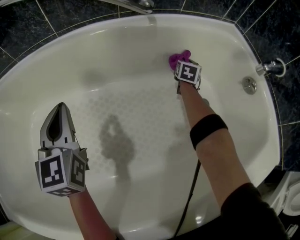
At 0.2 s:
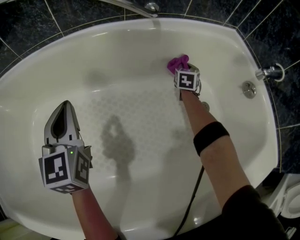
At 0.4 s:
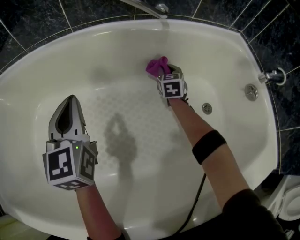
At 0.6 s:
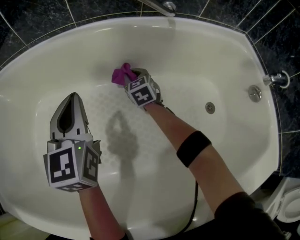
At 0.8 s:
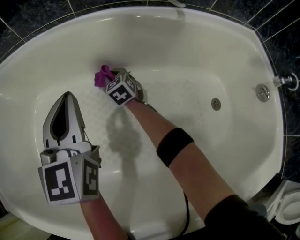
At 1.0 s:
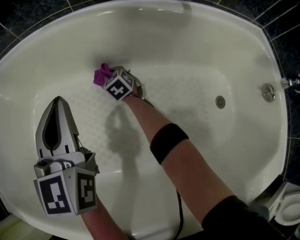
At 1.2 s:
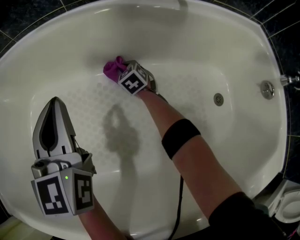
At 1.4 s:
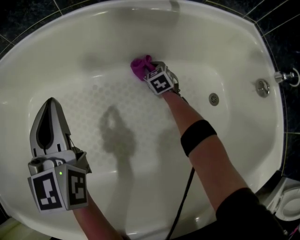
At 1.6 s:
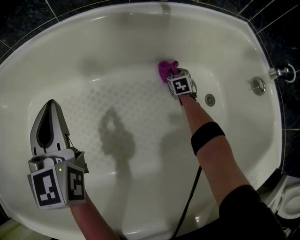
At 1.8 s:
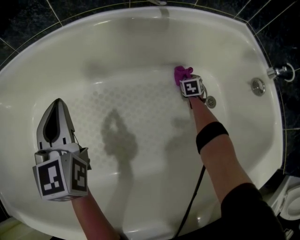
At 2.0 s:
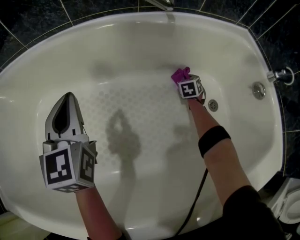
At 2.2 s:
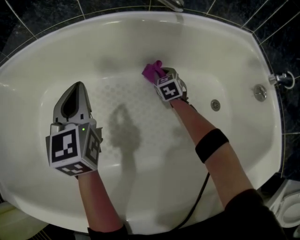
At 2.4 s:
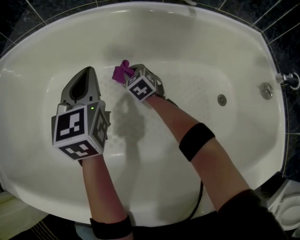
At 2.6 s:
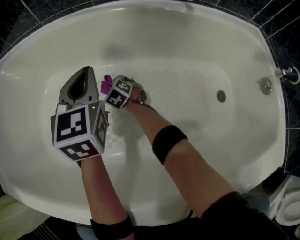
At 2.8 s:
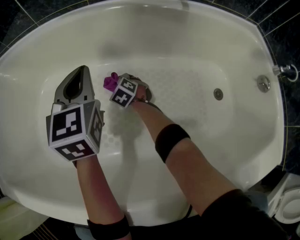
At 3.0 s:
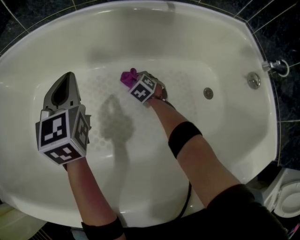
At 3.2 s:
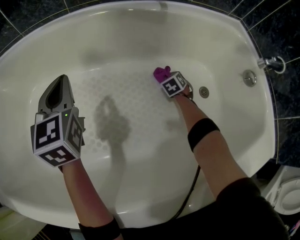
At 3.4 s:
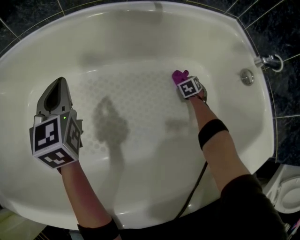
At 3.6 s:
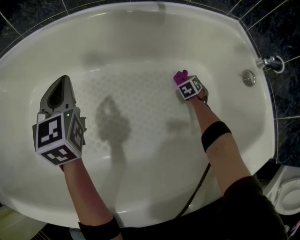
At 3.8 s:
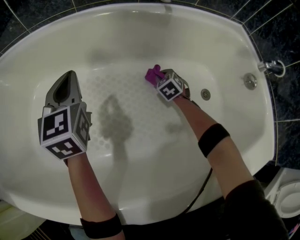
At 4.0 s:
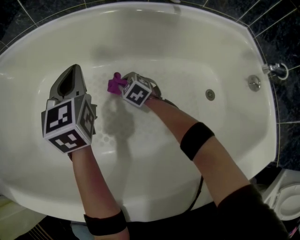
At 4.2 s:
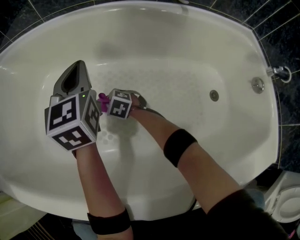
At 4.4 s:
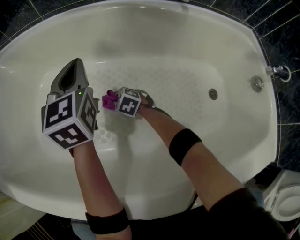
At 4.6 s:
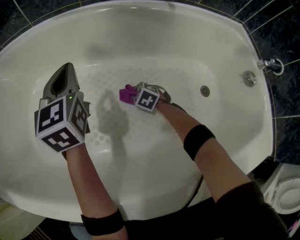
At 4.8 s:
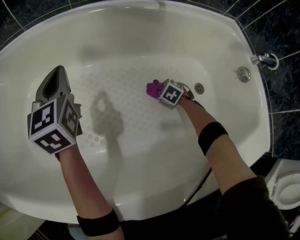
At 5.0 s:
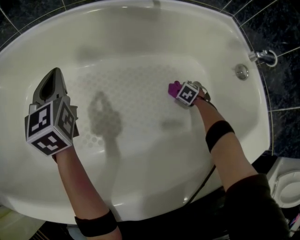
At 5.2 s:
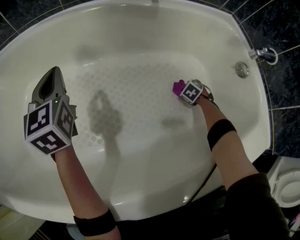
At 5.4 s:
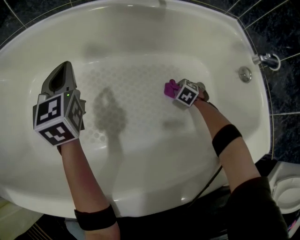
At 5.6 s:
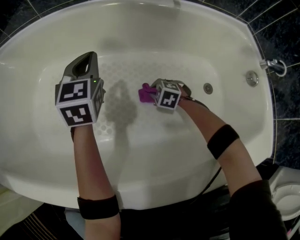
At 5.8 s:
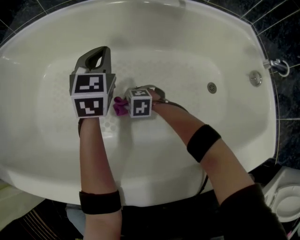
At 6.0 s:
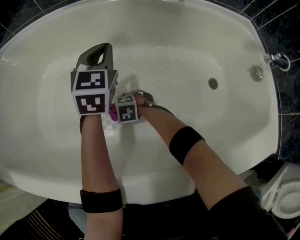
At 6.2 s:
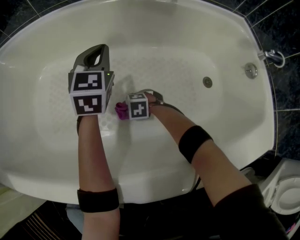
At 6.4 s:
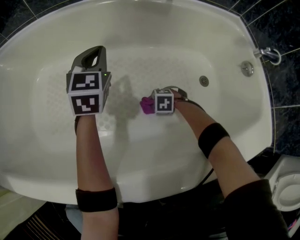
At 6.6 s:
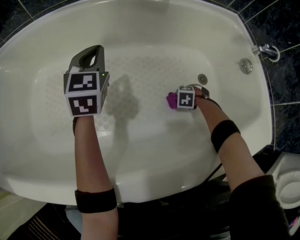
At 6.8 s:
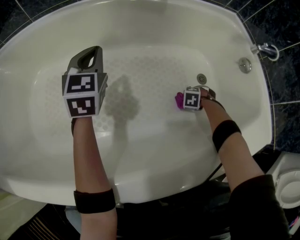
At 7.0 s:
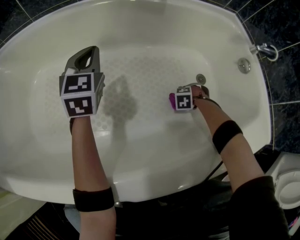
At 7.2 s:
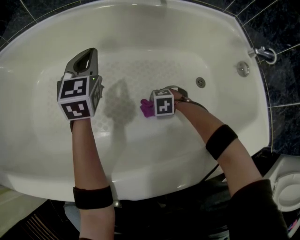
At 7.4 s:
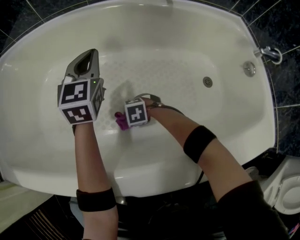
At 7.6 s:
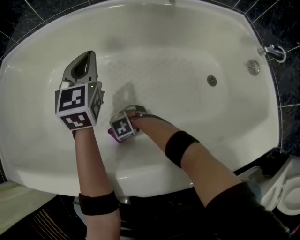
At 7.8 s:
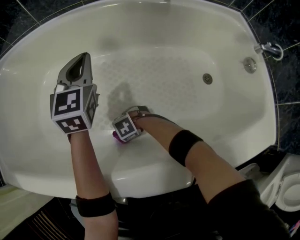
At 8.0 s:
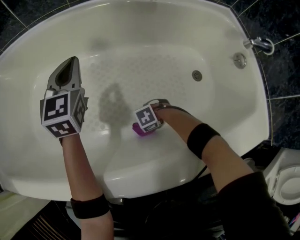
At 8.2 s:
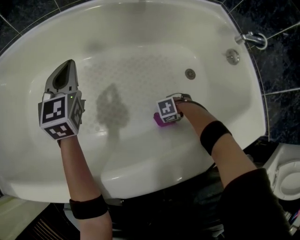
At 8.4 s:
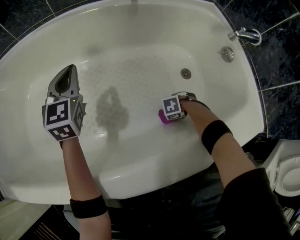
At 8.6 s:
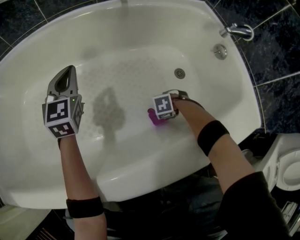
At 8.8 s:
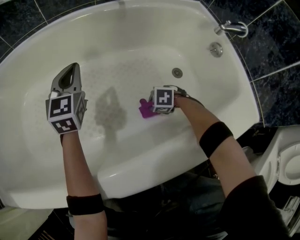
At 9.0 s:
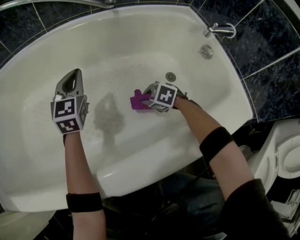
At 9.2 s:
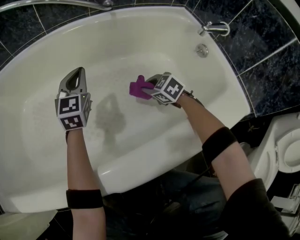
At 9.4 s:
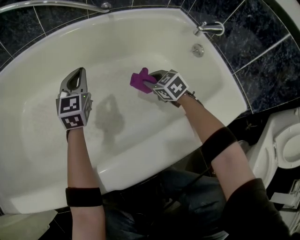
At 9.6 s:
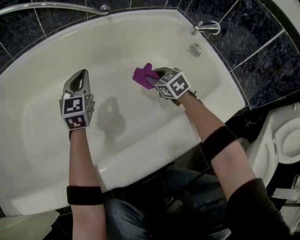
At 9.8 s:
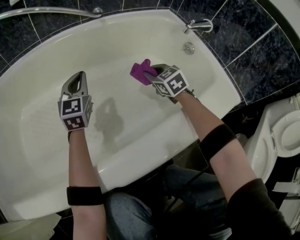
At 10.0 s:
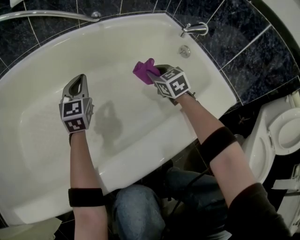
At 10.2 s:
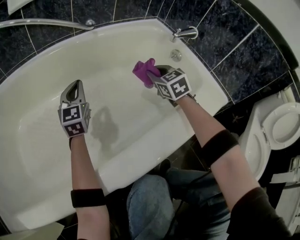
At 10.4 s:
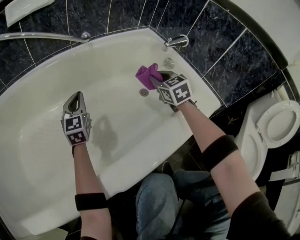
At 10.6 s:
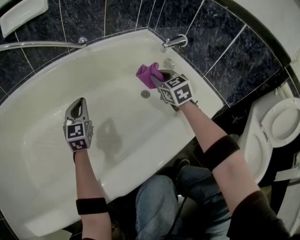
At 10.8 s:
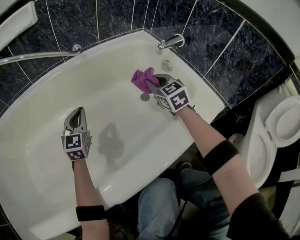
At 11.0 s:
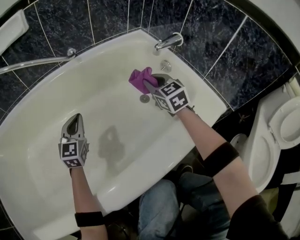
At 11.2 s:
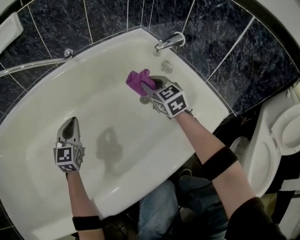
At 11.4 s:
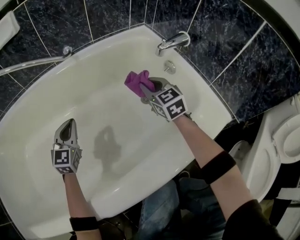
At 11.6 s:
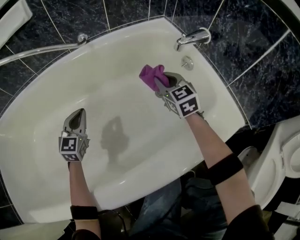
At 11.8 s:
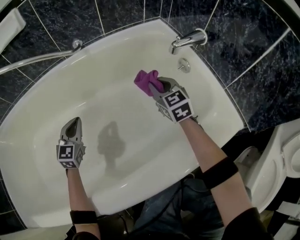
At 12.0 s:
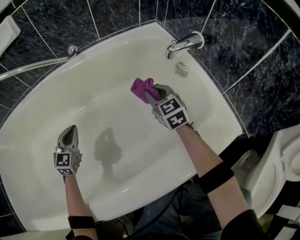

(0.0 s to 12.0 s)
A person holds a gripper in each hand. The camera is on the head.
0.0 s - 1.6 s: The right gripper is displaced downward by approximately 10 cm, and changes its angle by roughly 30 degrees.
1.6 s - 3.0 s: The right gripper moves about 10 cm upward and comes back, and turns by roughly 30 degrees.
3.0 s - 4.4 s: The right gripper reaches some 5 cm upward, then returns, and turns by approximately 30 degrees.
4.4 s - 6.0 s: The left gripper changes place by about 10 cm, and rotates about 20 degrees, while the right gripper rotates about 30 degrees.
6.0 s - 7.6 s: The left gripper ends up roughly 5 cm from where it was.
7.6 s - 9.0 s: The right gripper ends up some 35 cm from where it was, and rotates some 50 degrees. The left gripper ends up some 10 cm from where it was.
9.0 s - 10.4 s: The left gripper ends up roughly 5 cm from where it was, while the right gripper is displaced upward by some 25 cm, and angles its fingers upward, by roughly 30 degrees.
10.4 s - 12.0 s: The left gripper moves downward, about 5 cm, while the right gripper moves forward and downward, roughly 10 cm.

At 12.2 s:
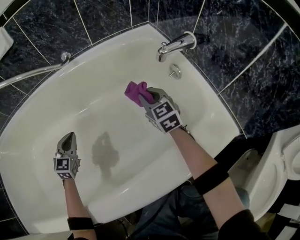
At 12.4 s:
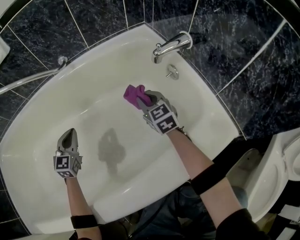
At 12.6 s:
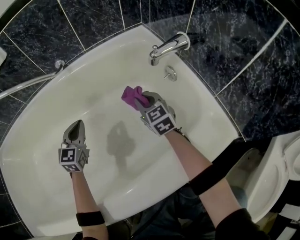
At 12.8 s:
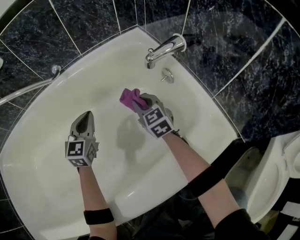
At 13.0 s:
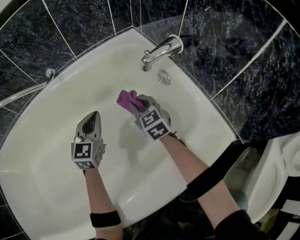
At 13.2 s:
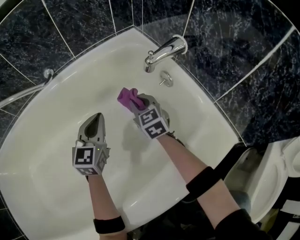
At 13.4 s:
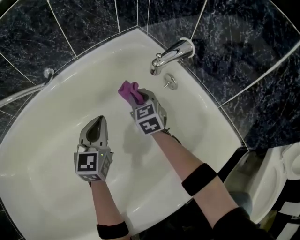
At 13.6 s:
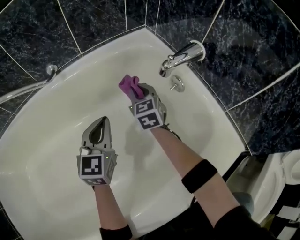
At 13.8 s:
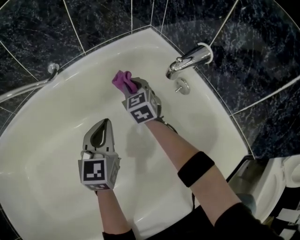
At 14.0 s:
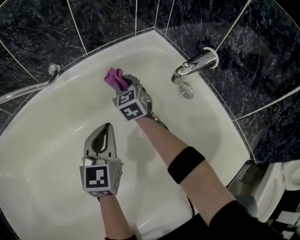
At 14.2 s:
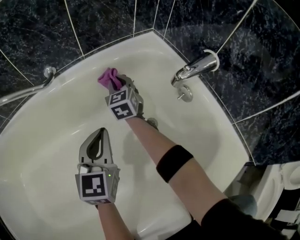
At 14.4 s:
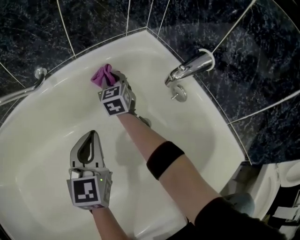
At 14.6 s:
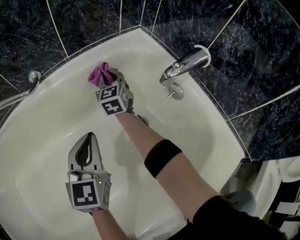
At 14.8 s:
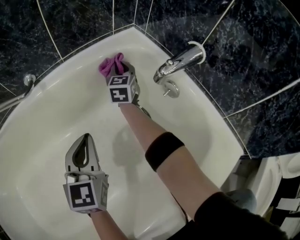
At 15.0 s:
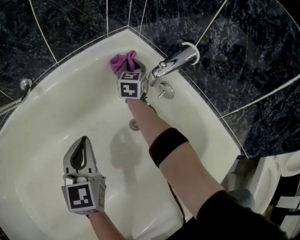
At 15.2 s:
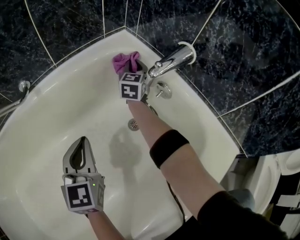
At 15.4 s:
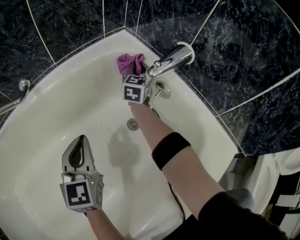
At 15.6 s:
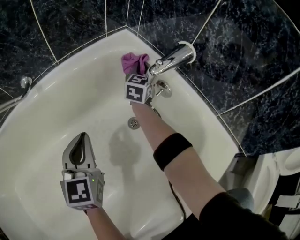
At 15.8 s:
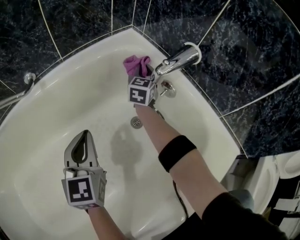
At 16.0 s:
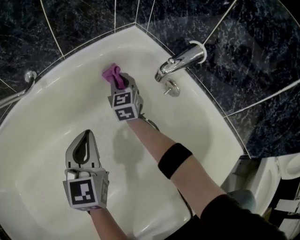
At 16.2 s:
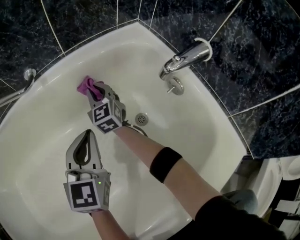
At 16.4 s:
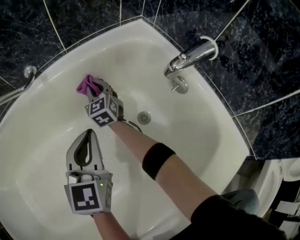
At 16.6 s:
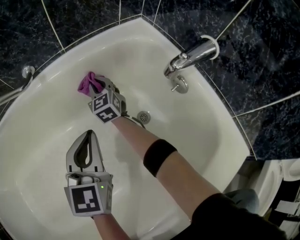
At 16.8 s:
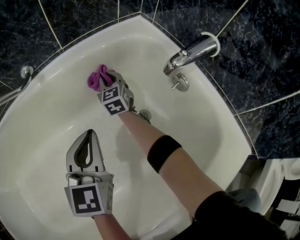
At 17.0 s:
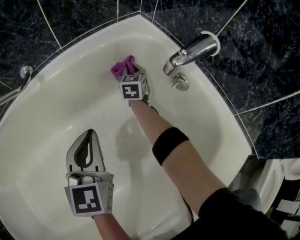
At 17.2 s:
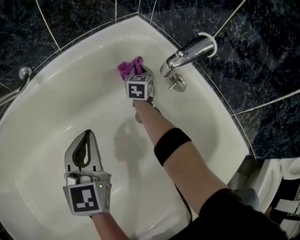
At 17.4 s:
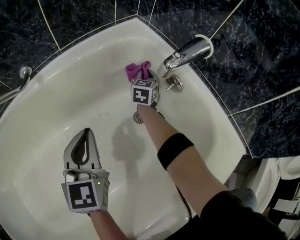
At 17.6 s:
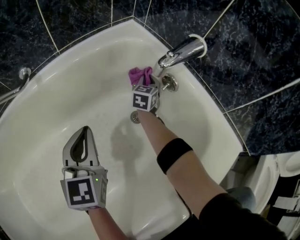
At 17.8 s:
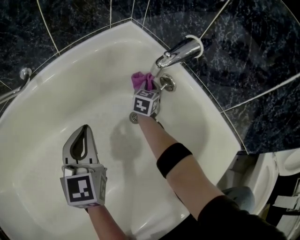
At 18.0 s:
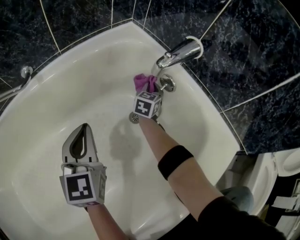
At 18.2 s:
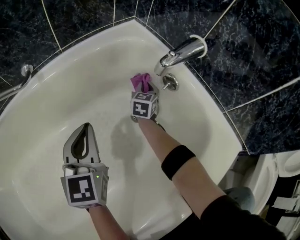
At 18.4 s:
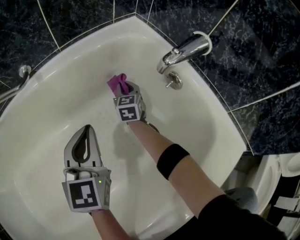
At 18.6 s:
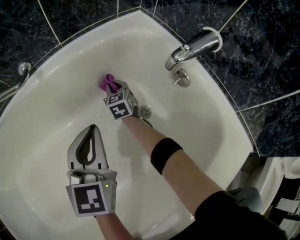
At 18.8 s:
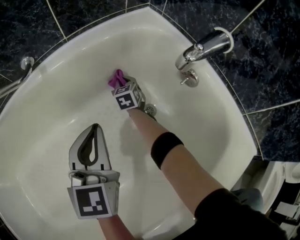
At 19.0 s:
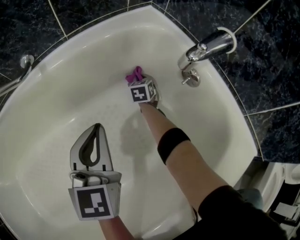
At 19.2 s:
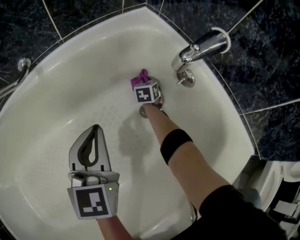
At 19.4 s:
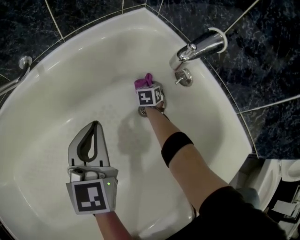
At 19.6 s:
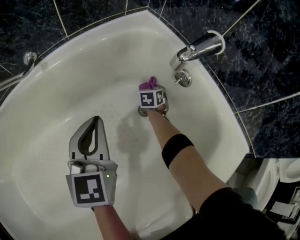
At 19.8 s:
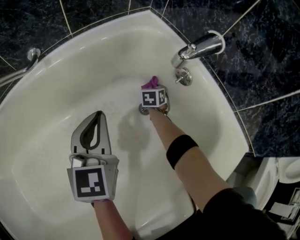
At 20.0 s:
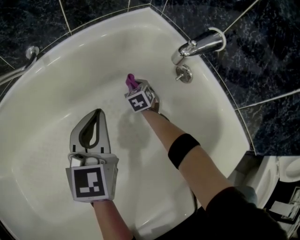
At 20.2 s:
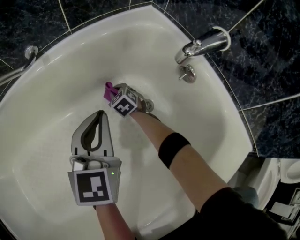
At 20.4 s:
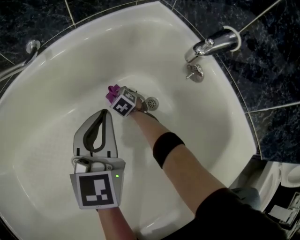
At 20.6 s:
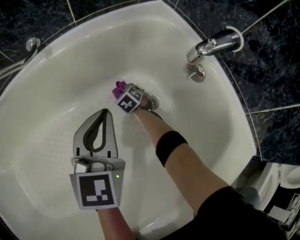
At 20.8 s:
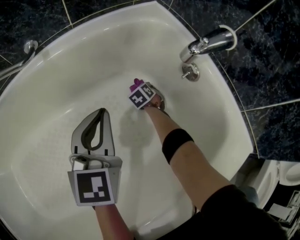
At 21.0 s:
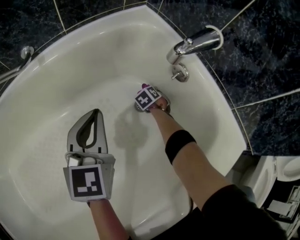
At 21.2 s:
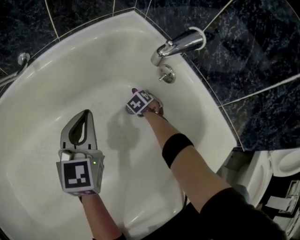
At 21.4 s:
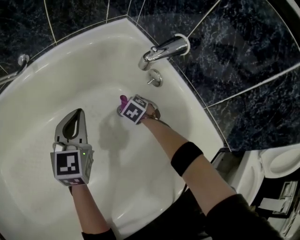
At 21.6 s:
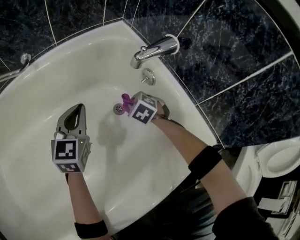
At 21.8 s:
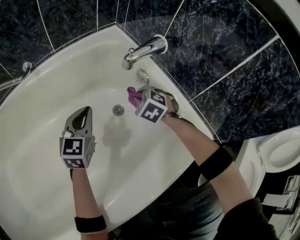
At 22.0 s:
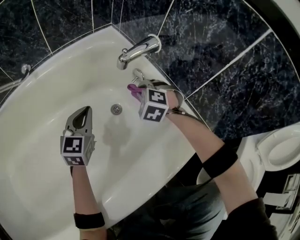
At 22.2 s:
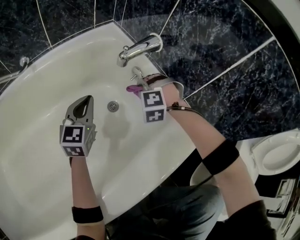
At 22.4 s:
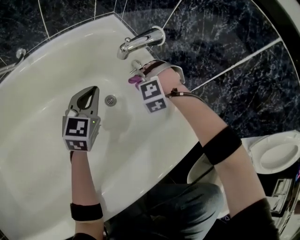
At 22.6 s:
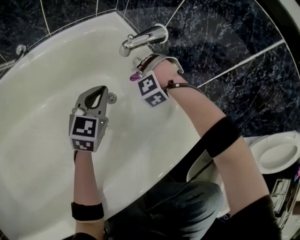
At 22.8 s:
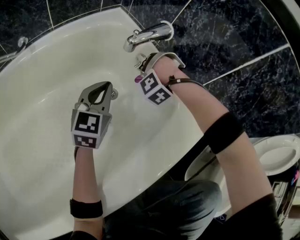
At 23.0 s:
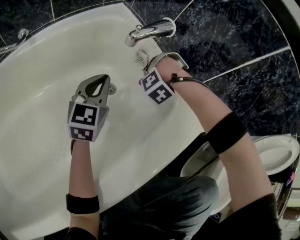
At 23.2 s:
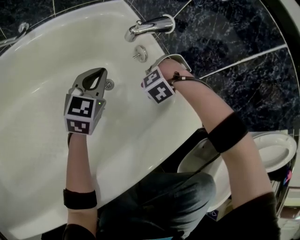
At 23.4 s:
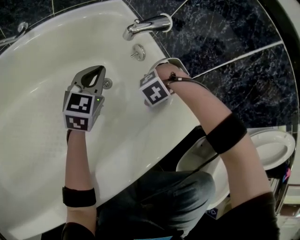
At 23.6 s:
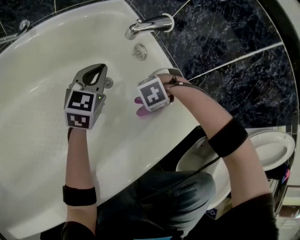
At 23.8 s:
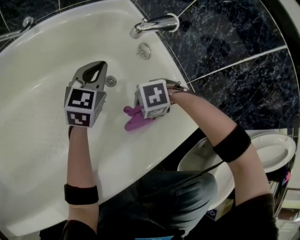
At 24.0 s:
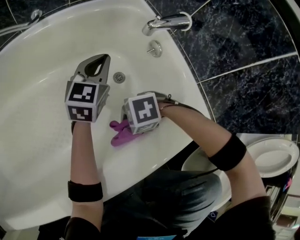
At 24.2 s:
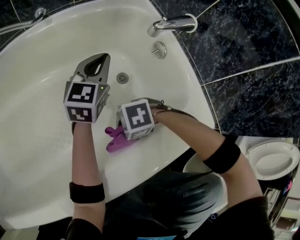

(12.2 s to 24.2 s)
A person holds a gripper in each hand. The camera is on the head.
12.2 s - 13.8 s: The left gripper moves to the right, forward and upward, approximately 25 cm; the right gripper moves forward, about 15 cm.
13.8 s - 15.2 s: The right gripper is displaced to the right and forward by some 20 cm, and rotates about 40 degrees.
15.2 s - 16.6 s: The right gripper is displaced to the left by roughly 25 cm, and swivels approximately 40 degrees.
16.6 s - 18.2 s: The right gripper shifts by roughly 25 cm, and rotates some 40 degrees.
18.2 s - 19.8 s: The right gripper moves downward, some 10 cm, travels to the left and back again, roughly 20 cm each way, and changes its angle by approximately 30 degrees.
19.8 s - 21.2 s: The right gripper turns by some 40 degrees.
21.2 s - 22.6 s: The left gripper ends up about 15 cm from where it was. Meanwhile the right gripper heads upward, covering about 25 cm, and rotates around the line of its fingers by some 90 degrees, counterclockwise from behind.
22.6 s - 24.2 s: The right gripper moves approximately 35 cm, and changes its angle by about 70 degrees, while the left gripper shifts by roughly 5 cm.
